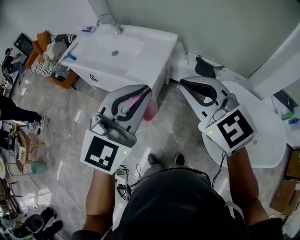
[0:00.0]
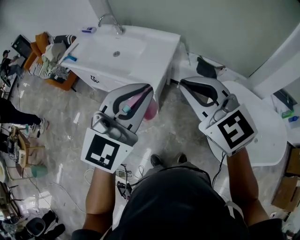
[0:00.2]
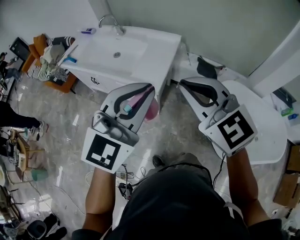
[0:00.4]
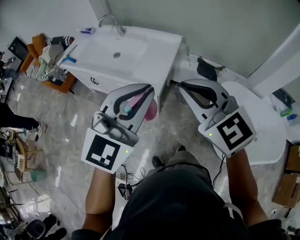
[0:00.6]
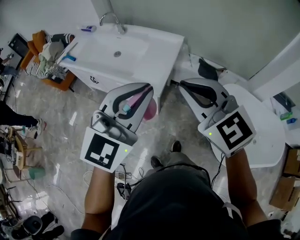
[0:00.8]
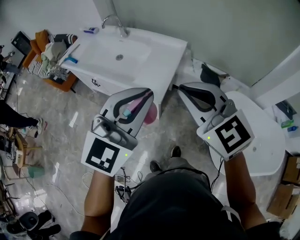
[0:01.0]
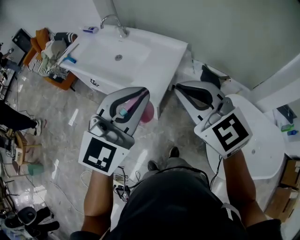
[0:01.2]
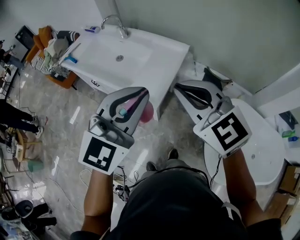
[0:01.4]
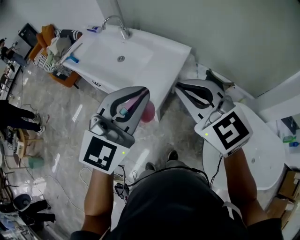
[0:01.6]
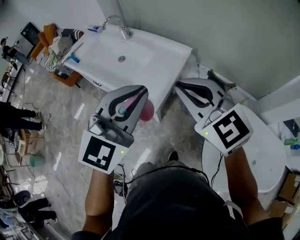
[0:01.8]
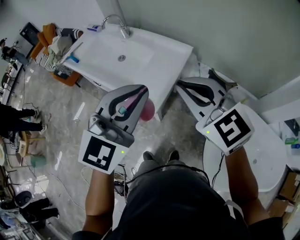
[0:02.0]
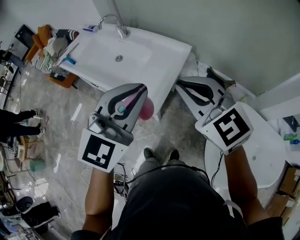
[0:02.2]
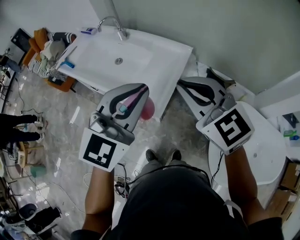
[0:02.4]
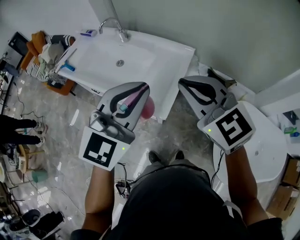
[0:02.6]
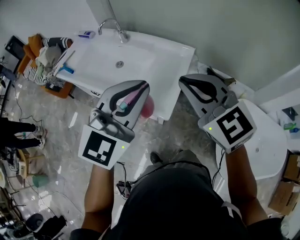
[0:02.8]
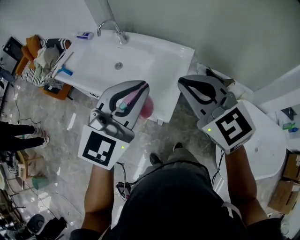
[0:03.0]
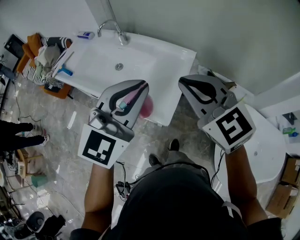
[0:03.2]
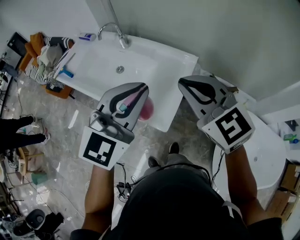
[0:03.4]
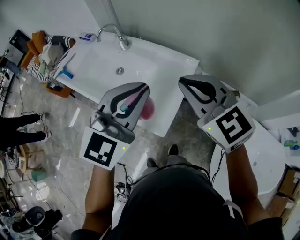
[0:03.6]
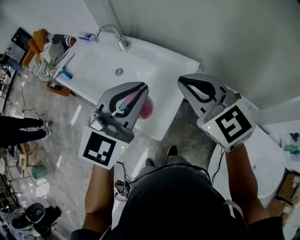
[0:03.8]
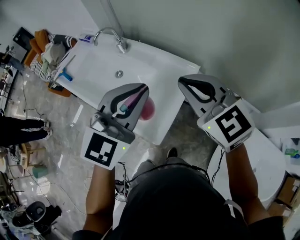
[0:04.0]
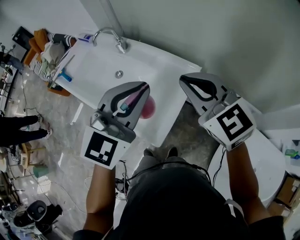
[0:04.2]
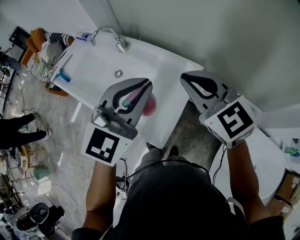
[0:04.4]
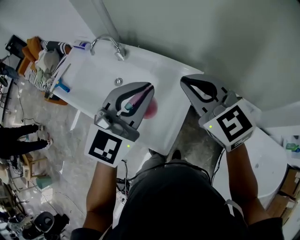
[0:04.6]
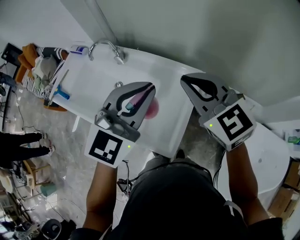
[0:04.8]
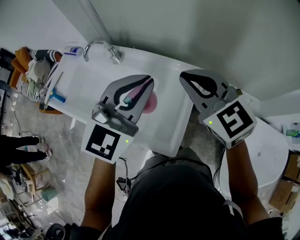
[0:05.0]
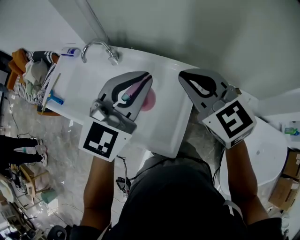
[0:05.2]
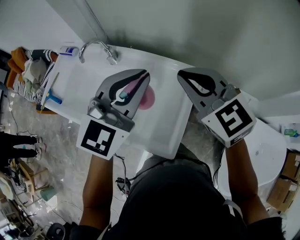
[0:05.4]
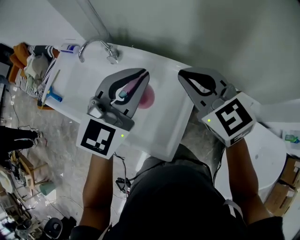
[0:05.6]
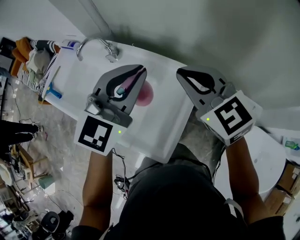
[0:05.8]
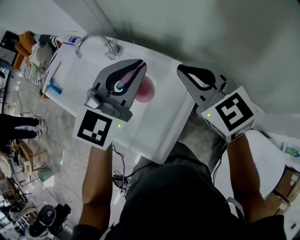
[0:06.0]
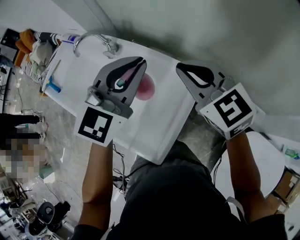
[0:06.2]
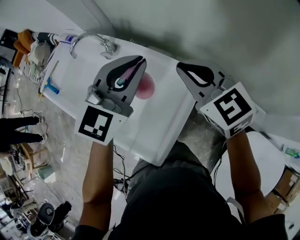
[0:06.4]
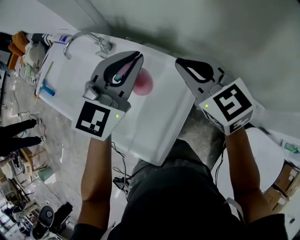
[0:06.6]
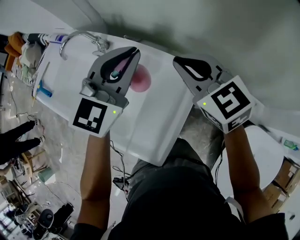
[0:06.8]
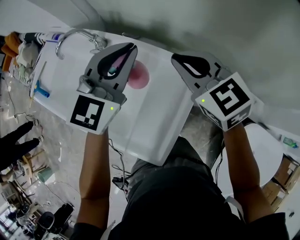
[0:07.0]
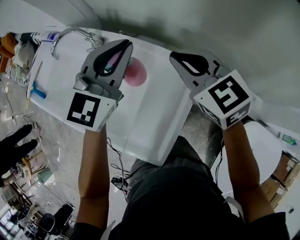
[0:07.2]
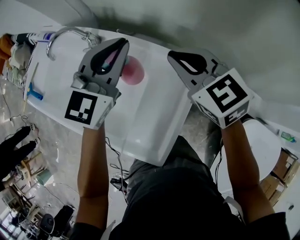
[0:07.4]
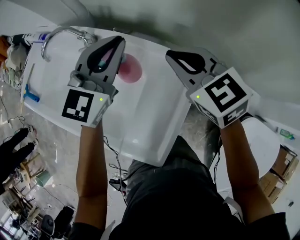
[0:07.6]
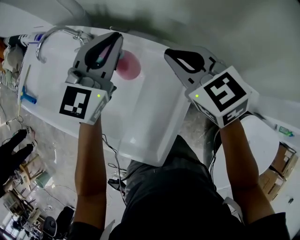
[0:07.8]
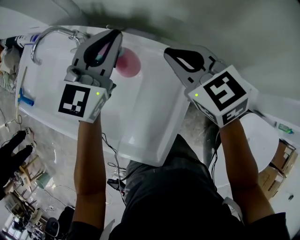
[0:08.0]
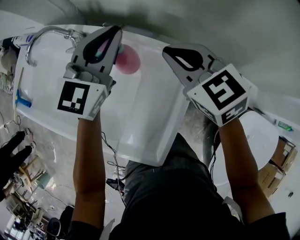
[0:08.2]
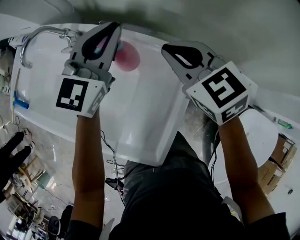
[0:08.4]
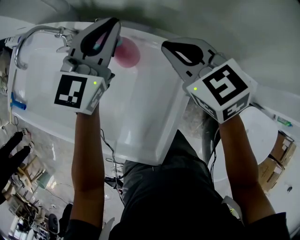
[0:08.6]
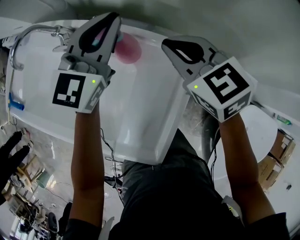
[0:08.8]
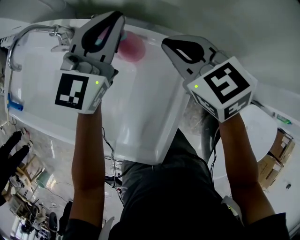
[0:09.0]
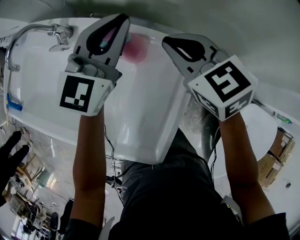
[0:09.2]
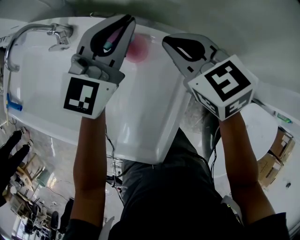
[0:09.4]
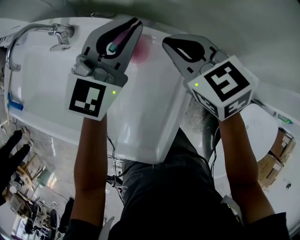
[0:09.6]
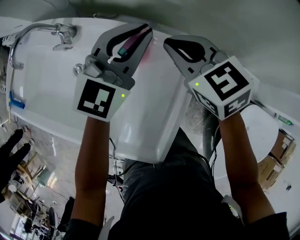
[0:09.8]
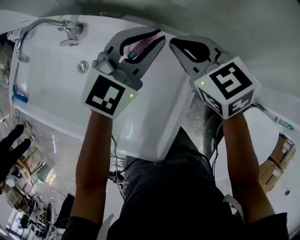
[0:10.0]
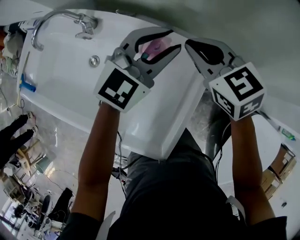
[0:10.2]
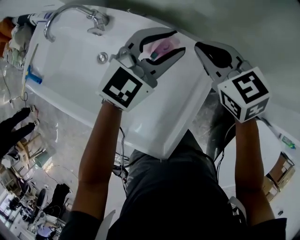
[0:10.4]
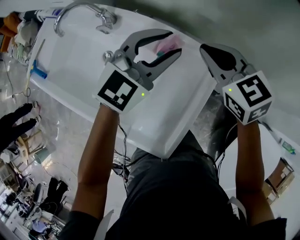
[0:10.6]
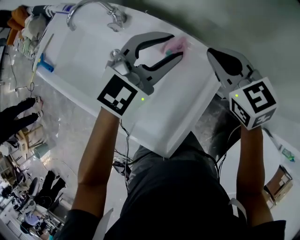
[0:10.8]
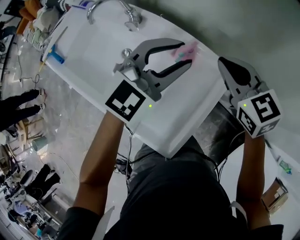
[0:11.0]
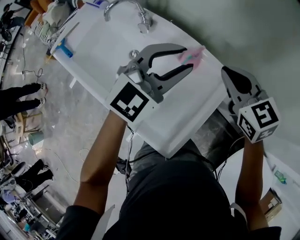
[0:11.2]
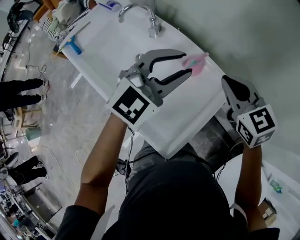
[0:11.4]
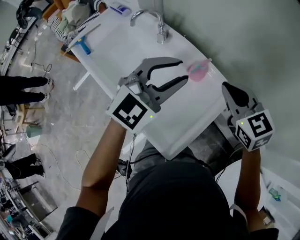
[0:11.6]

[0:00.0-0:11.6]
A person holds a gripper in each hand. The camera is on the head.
0:00.0 to 0:01.4: Both grippers travel together forward, approximately 10 cm.
0:01.4 to 0:02.8: Both grippers travel together forward and to the left, some 10 cm.
0:02.8 to 0:04.4: Both grippers travel together forward, about 20 cm.
0:04.4 to 0:05.8: The grippers both shift forward by roughly 15 cm.
0:05.8 to 0:07.2: The right gripper moves downward and forward, some 15 cm, while the left gripper goes some 15 cm forward and downward.
0:07.2 to 0:08.8: The right gripper is displaced downward by some 10 cm. The left gripper travels downward and forward by approximately 10 cm.
0:08.8 to 0:10.2: The left gripper goes roughly 10 cm to the right and backward, turns by approximately 20 degrees, and opens.
0:10.2 to 0:11.6: The right gripper moves backward and upward, about 15 cm. Meanwhile the left gripper heads backward, upward and to the left, covering approximately 20 cm, and swivels about 20 degrees.

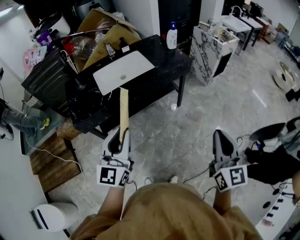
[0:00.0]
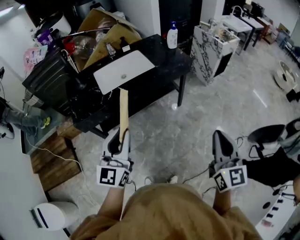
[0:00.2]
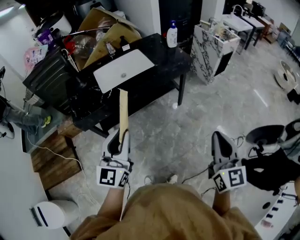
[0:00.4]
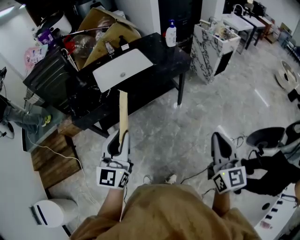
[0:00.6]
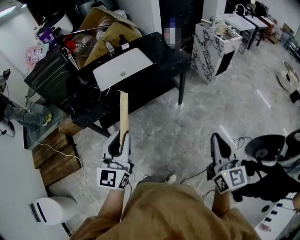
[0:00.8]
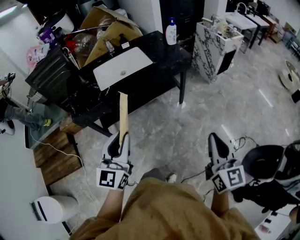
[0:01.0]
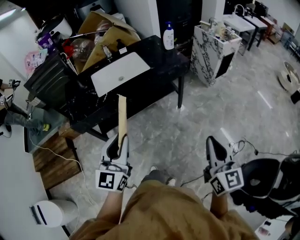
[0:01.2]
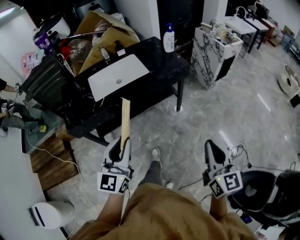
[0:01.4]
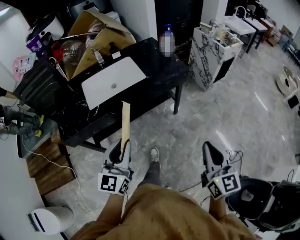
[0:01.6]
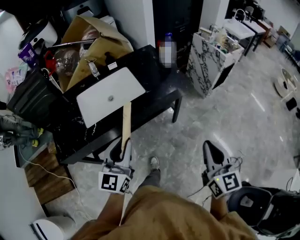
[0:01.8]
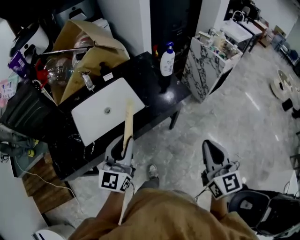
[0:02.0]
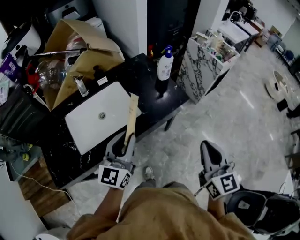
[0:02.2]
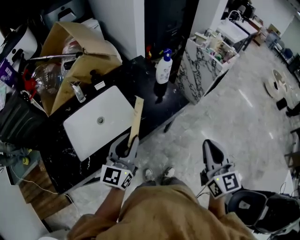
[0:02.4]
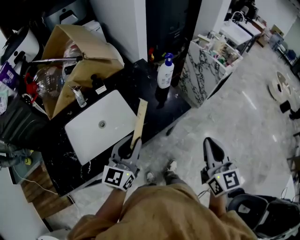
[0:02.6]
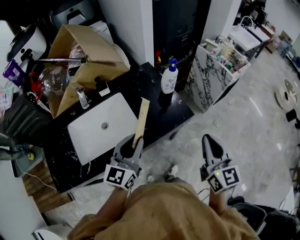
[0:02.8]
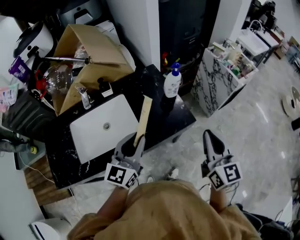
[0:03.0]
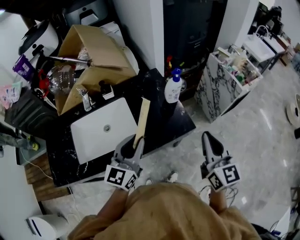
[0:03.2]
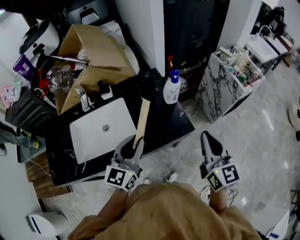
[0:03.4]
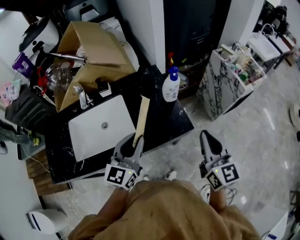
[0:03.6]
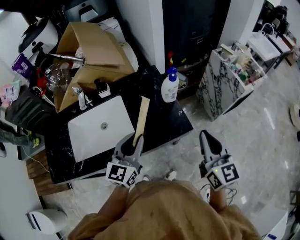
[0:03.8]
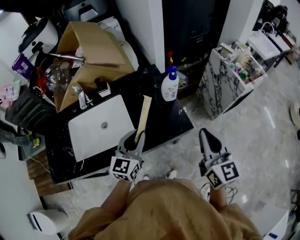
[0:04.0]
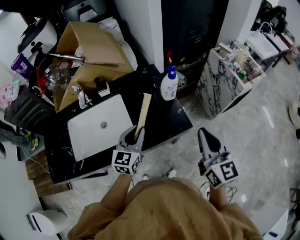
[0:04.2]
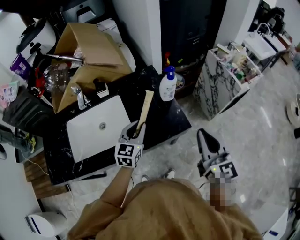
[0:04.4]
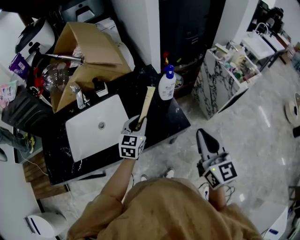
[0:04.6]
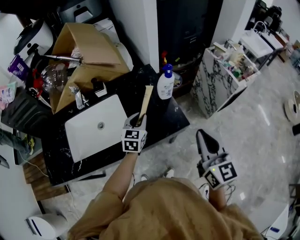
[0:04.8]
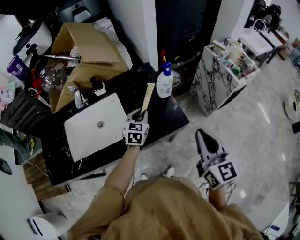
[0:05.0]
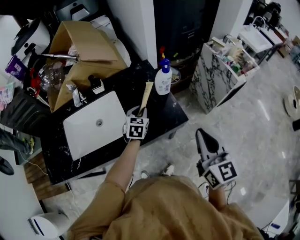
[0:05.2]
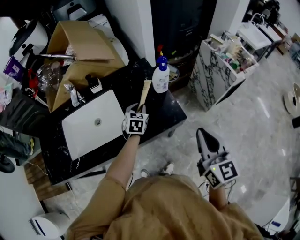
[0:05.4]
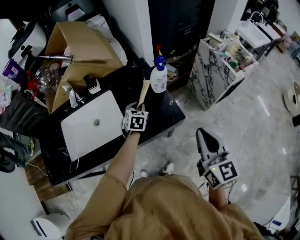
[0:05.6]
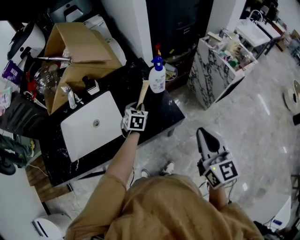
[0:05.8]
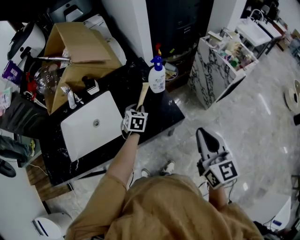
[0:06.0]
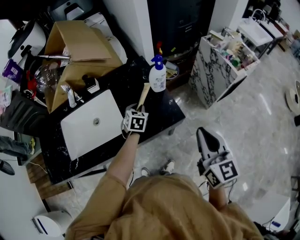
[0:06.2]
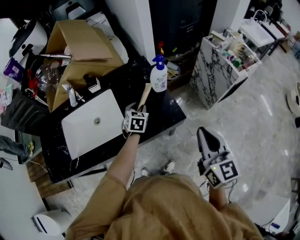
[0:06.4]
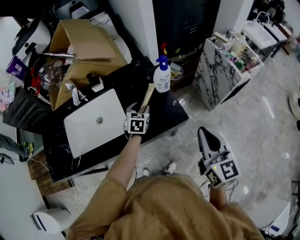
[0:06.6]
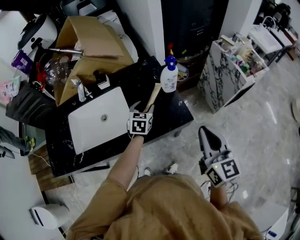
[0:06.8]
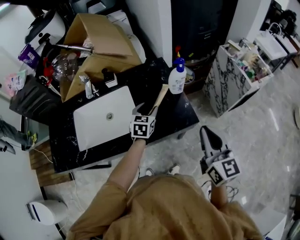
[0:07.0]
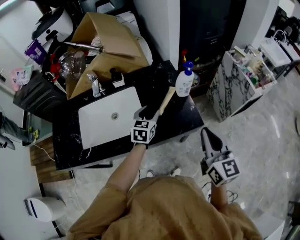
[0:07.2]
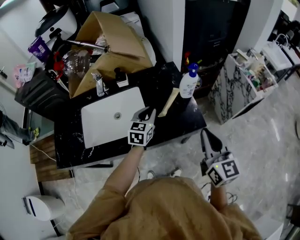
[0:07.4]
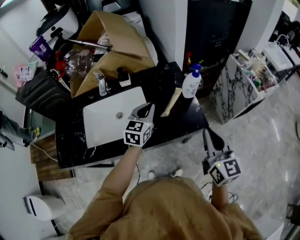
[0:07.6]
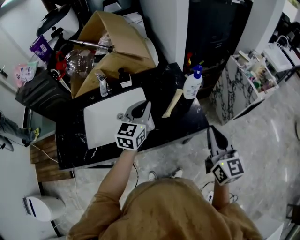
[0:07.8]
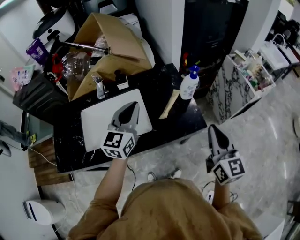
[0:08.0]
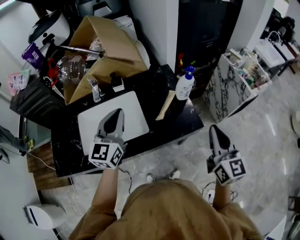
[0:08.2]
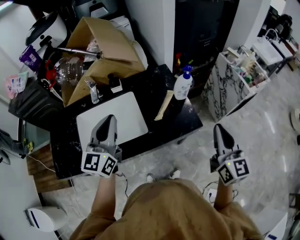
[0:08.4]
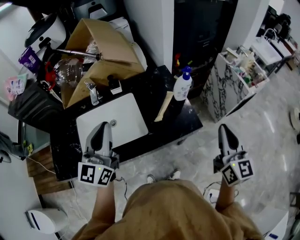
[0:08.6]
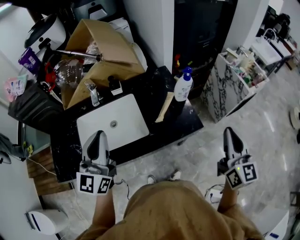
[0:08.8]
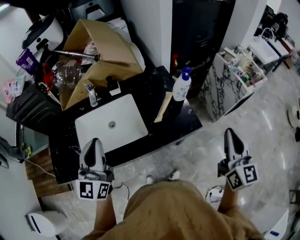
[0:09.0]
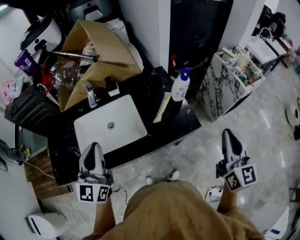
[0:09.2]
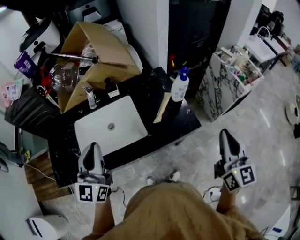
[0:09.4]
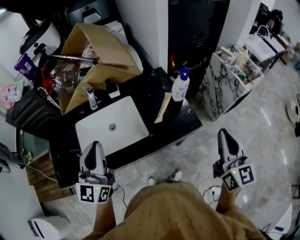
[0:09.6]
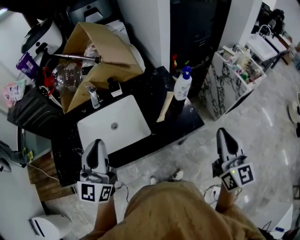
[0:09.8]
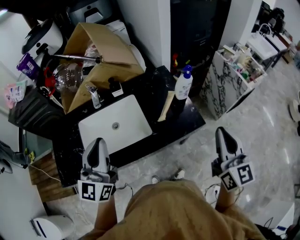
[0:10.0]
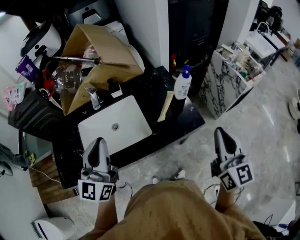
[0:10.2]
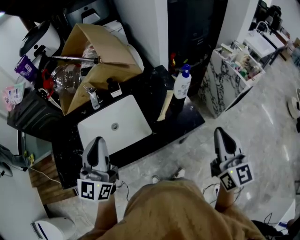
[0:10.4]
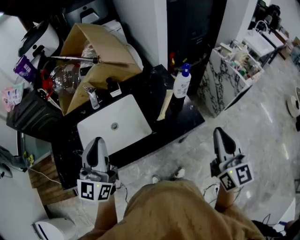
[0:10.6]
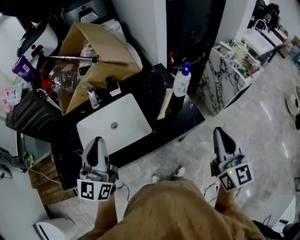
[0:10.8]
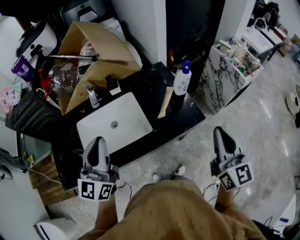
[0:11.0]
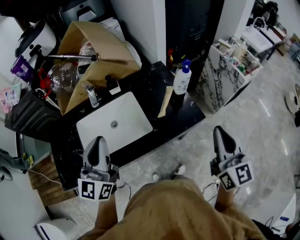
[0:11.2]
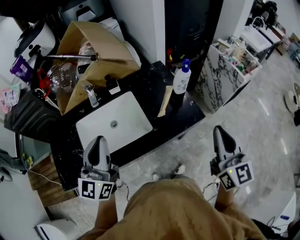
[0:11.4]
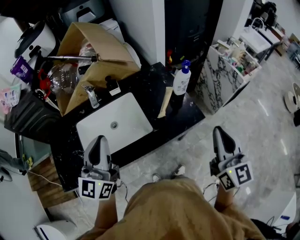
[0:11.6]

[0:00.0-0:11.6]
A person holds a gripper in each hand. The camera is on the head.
0:00.0 to 0:01.4: The right gripper moves downward, forward and to the right, some 10 cm. Meanwhile the left gripper moves to the right, about 5 cm.
0:01.4 to 0:02.8: Both grippers are carried forward, roughly 50 cm.
0:02.8 to 0:04.4: The left gripper shifts about 15 cm forward, downward and to the right, while the right gripper is displaced forward by approximately 10 cm.
0:04.4 to 0:05.8: The left gripper travels downward and forward by about 15 cm, and turns by roughly 30 degrees.
0:05.8 to 0:07.2: The right gripper is displaced to the left by roughly 5 cm. Meanwhile the left gripper is displaced to the left and upward by approximately 10 cm, and opens its fingers.
0:07.2 to 0:08.8: The right gripper travels upward and to the right by approximately 10 cm, while the left gripper moves upward, to the left and backward, approximately 35 cm, tips its fingers upward by approximately 40 degrees, and closes.
0:08.8 to 0:10.2: The right gripper shifts some 5 cm to the left.
0:10.2 to 0:11.6: The grippers stay close to where they were, moving slightly.
